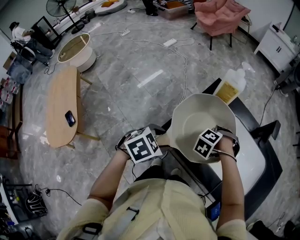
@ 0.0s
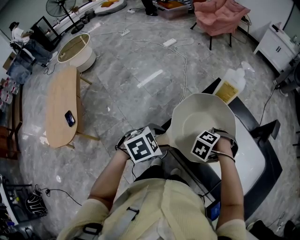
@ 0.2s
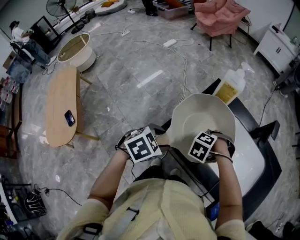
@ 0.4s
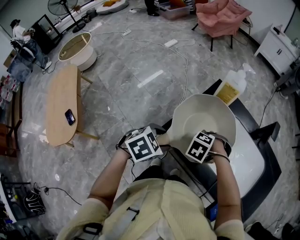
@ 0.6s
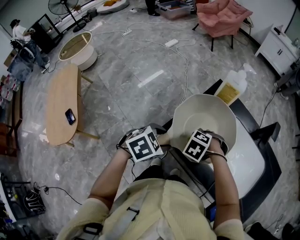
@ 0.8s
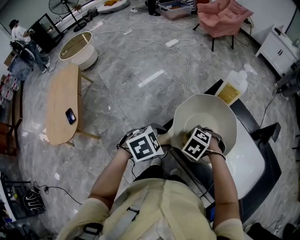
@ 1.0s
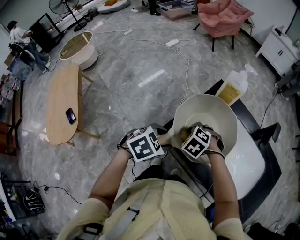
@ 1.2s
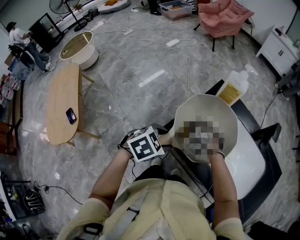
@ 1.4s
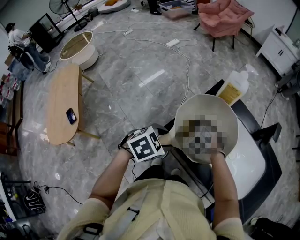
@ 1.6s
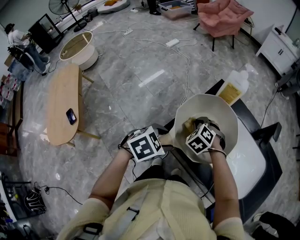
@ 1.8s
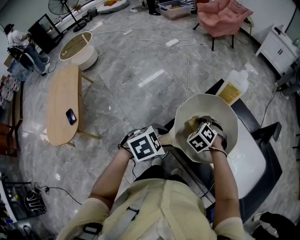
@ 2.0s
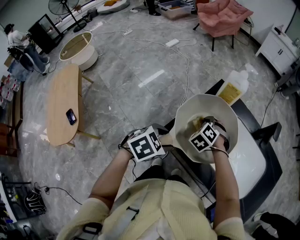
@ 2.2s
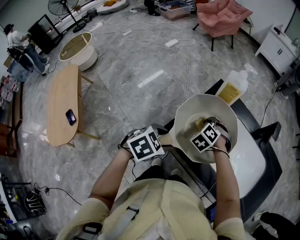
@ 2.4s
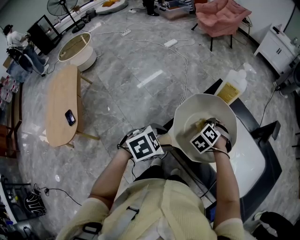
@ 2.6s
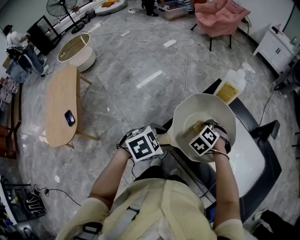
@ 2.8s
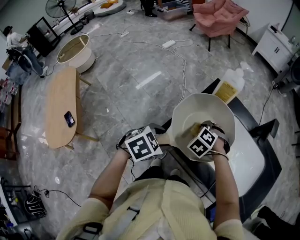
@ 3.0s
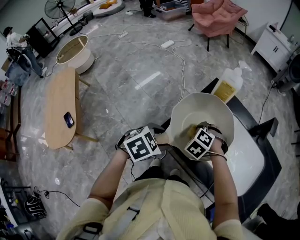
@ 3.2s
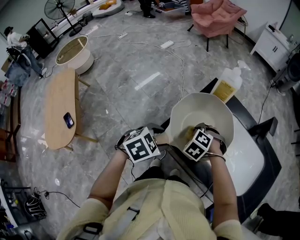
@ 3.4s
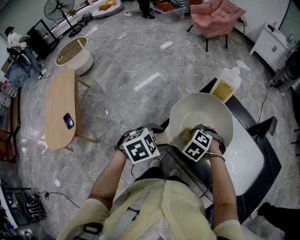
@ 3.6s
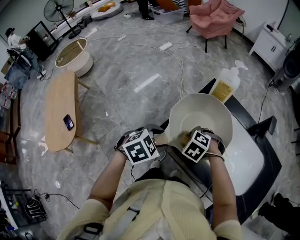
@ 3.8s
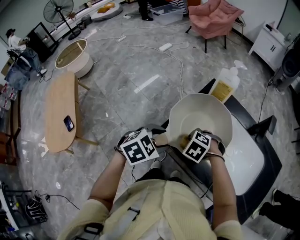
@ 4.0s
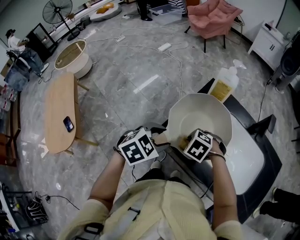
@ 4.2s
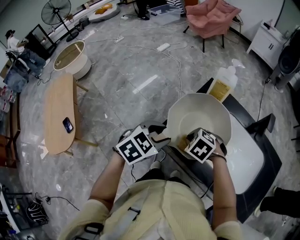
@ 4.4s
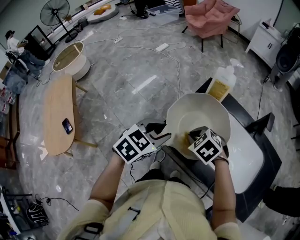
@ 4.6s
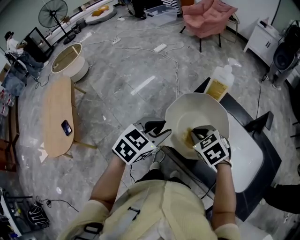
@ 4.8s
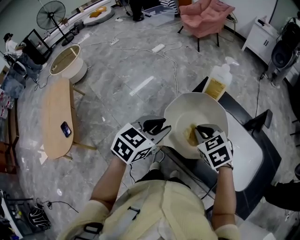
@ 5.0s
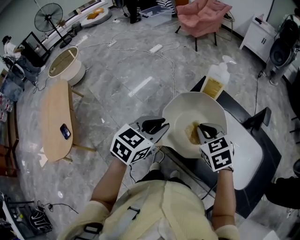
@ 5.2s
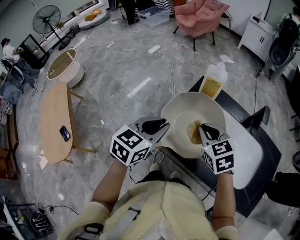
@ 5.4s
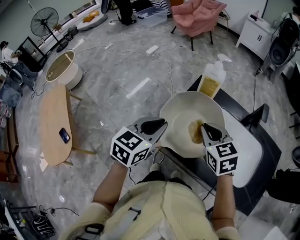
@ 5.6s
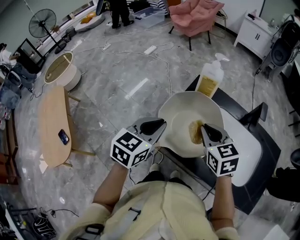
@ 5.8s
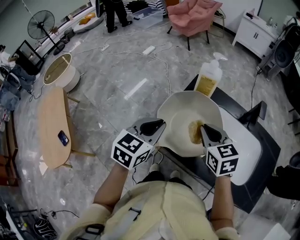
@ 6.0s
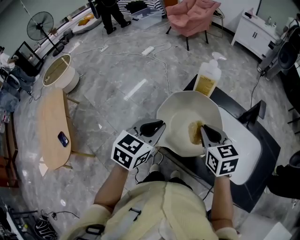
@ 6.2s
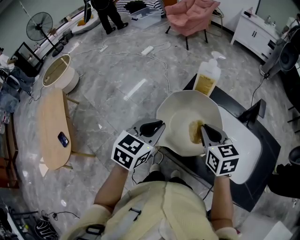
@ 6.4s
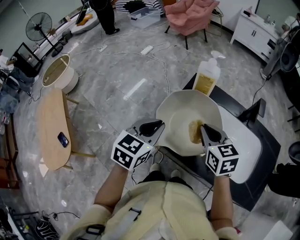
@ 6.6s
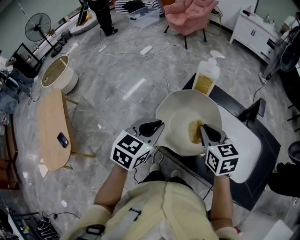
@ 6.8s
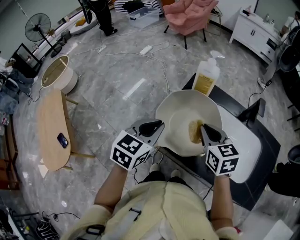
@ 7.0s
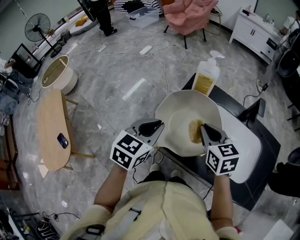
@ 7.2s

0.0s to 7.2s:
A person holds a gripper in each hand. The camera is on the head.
0.0s to 1.4s: The right gripper ends up about 15 cm from where it was, and swivels roughly 30 degrees.
1.4s to 2.8s: The right gripper moves to the right and forward, roughly 10 cm.
2.8s to 4.4s: The left gripper changes place by approximately 5 cm. Meanwhile the right gripper moves about 10 cm, and turns by some 30 degrees.
4.4s to 5.8s: The right gripper shifts about 15 cm upward and to the right, and tips its fingers upward by roughly 40 degrees. Meanwhile the left gripper shifts approximately 5 cm upward, turns by about 30 degrees, and closes.
5.8s to 7.2s: There are only small adjustments of the grippers.

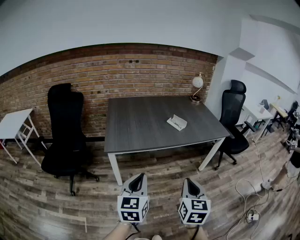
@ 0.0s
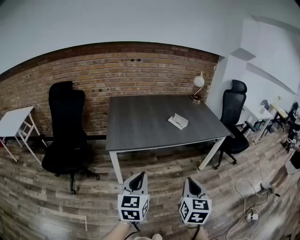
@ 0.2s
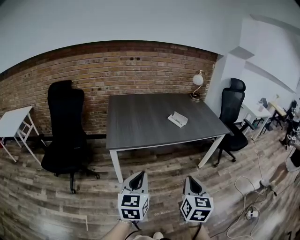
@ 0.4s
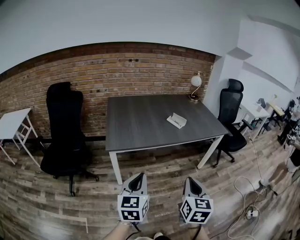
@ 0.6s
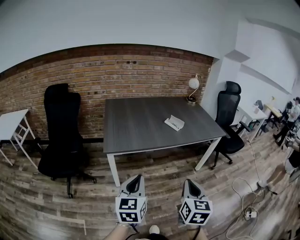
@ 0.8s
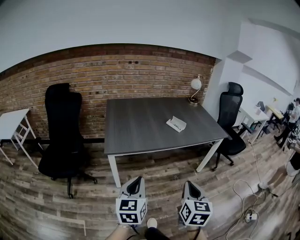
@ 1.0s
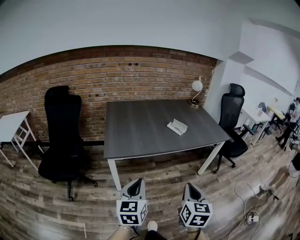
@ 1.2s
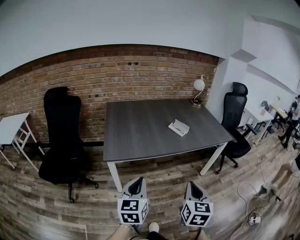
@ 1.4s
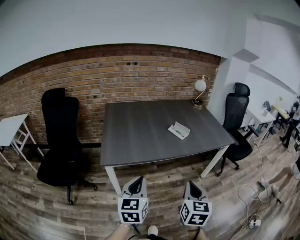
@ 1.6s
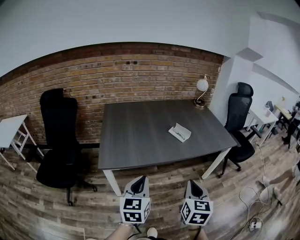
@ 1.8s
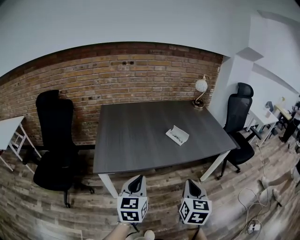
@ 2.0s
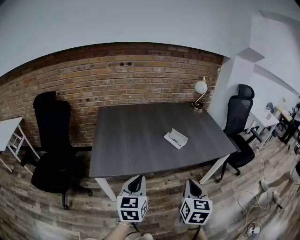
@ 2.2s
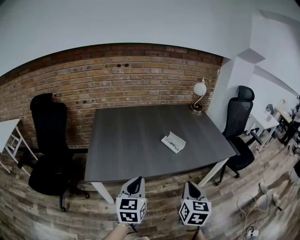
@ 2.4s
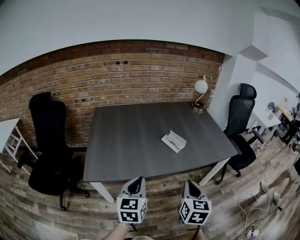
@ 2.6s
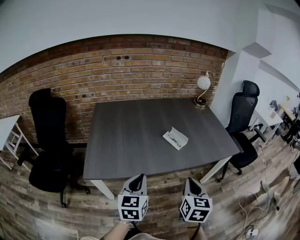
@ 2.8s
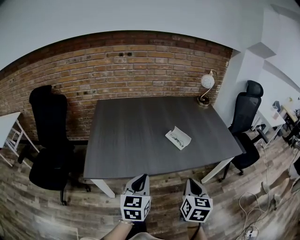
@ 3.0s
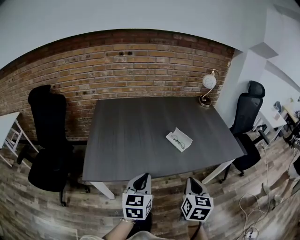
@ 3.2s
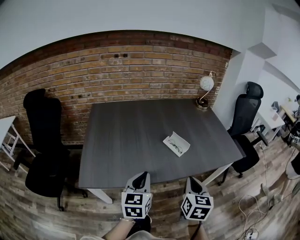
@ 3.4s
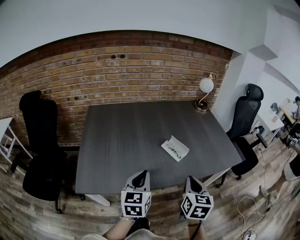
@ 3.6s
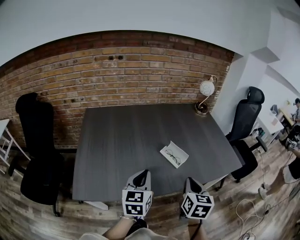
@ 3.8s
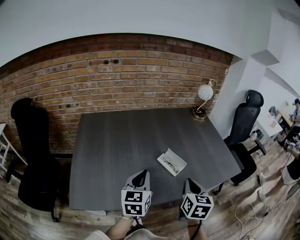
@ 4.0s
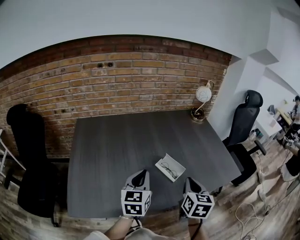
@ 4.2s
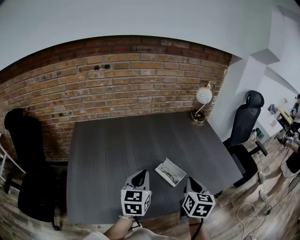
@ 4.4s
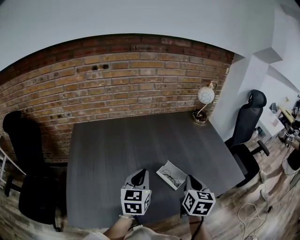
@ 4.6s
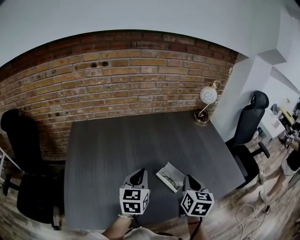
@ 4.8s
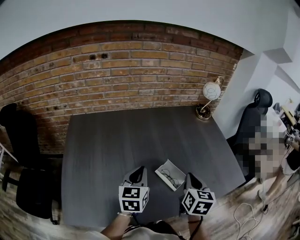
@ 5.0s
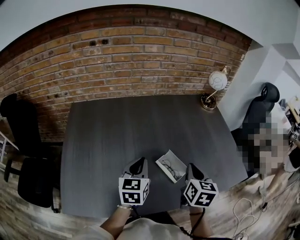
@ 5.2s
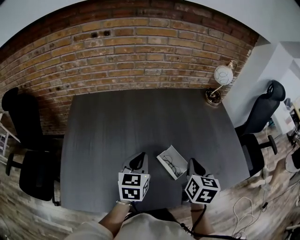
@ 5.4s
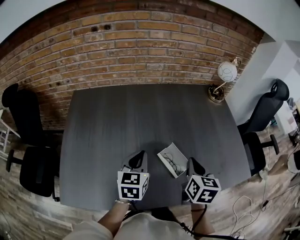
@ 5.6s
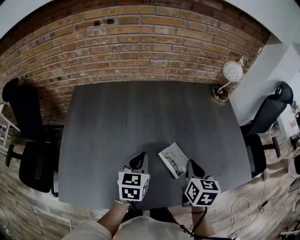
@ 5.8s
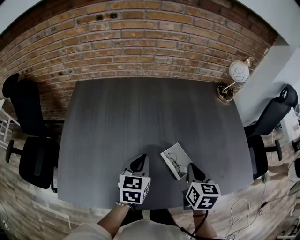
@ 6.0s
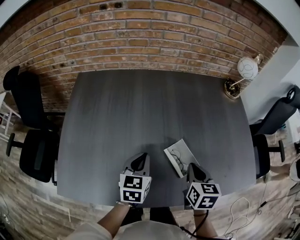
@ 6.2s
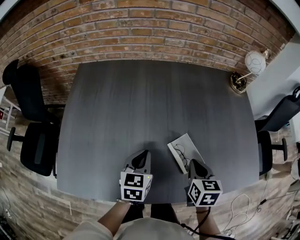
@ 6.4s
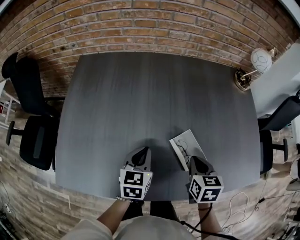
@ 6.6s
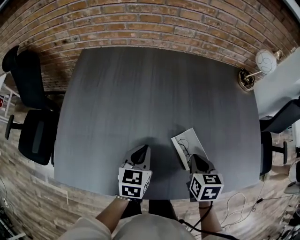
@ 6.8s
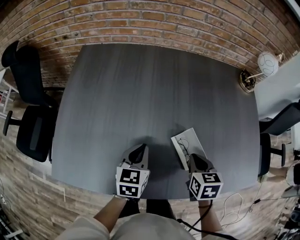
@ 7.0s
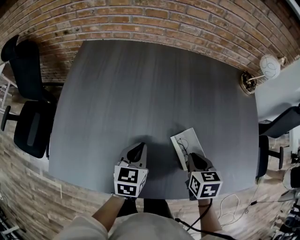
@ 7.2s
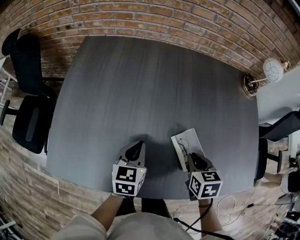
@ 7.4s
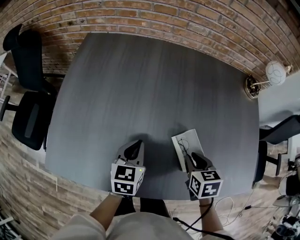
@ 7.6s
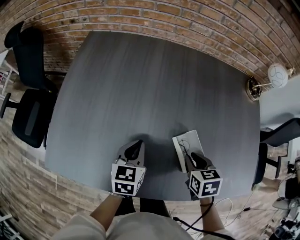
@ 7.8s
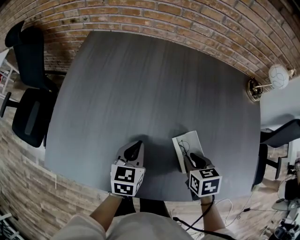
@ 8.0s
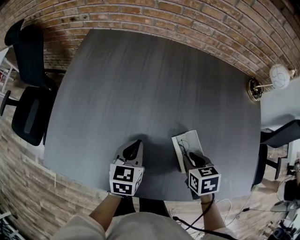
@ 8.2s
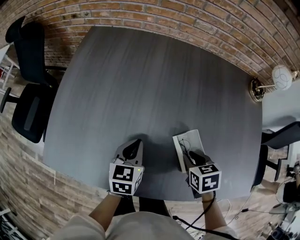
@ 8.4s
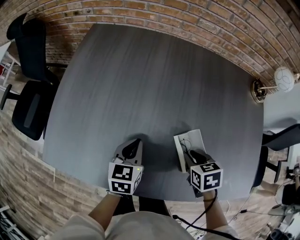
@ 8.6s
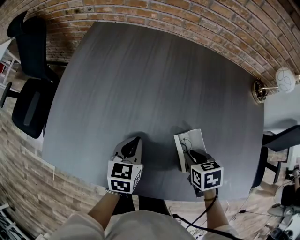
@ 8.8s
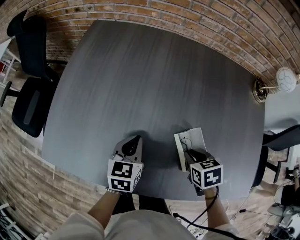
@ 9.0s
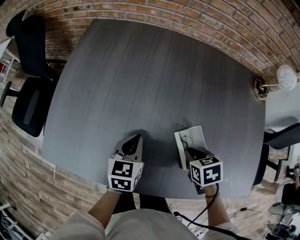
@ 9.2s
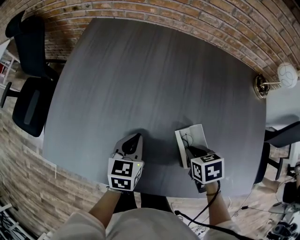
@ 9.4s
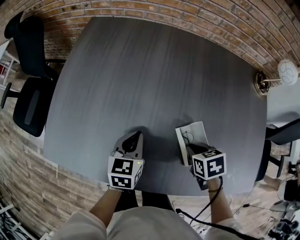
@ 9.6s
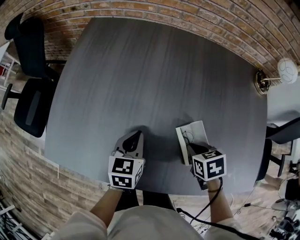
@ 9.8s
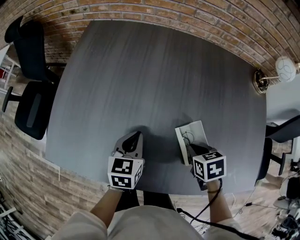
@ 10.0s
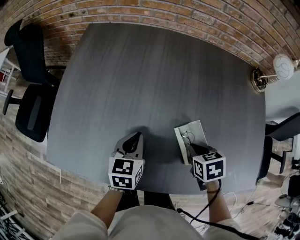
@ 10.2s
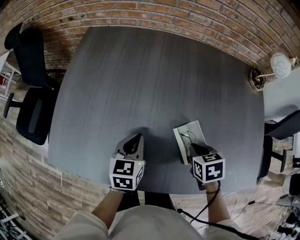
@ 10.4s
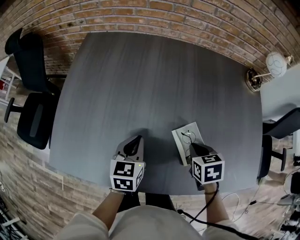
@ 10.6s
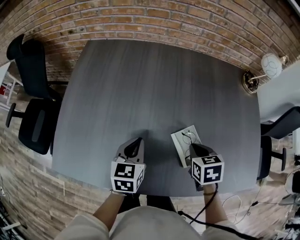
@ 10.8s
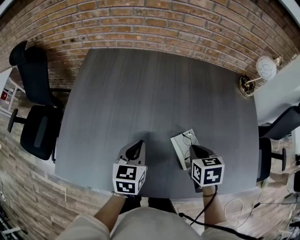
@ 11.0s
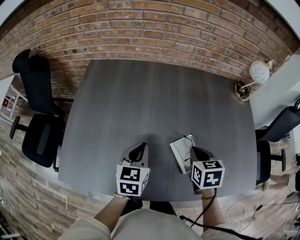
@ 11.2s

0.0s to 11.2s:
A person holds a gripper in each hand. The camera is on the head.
0.0s to 1.6s: Both grippers travel together forward, approximately 10 cm.
1.6s to 3.2s: The two grippers go about 20 cm forward.
3.2s to 4.8s: The two grippers go roughly 25 cm forward.
4.8s to 6.4s: Both grippers travel together downward, approximately 10 cm. The right gripper turns by some 30 degrees.
6.4s to 8.0s: The right gripper moves downward, roughly 5 cm, and turns by roughly 30 degrees.
8.0s to 9.6s: The grippers stay close to where they were, moving slightly.
9.6s to 11.2s: The grippers both shift upward by approximately 10 cm. The right gripper turns by approximately 30 degrees.

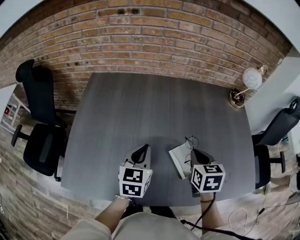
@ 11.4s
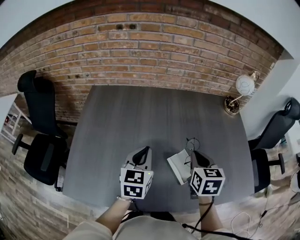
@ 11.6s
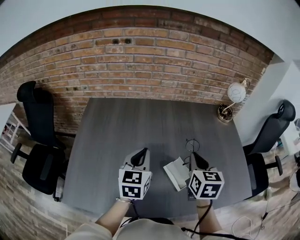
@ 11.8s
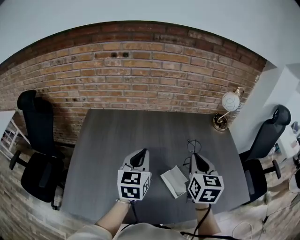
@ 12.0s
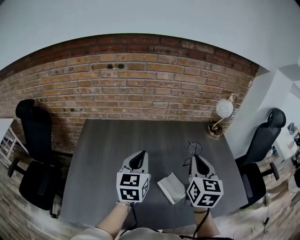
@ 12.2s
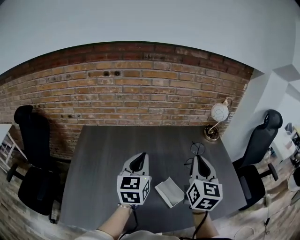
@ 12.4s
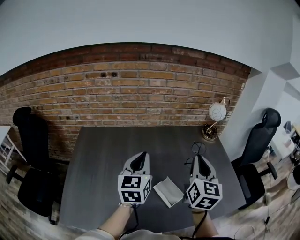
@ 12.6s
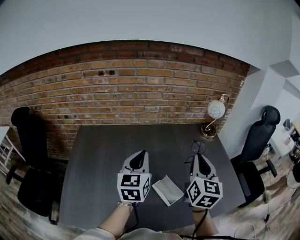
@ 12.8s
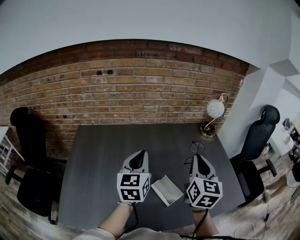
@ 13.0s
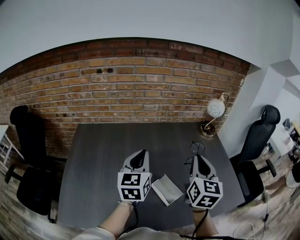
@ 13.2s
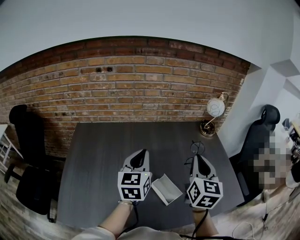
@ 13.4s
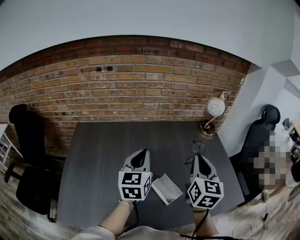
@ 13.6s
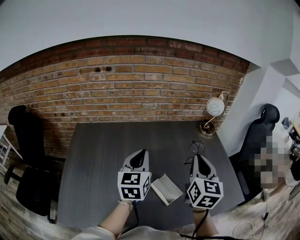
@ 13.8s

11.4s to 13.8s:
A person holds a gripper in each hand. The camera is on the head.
11.4s to 12.6s: The right gripper is displaced upward by some 20 cm, and points its fingers roughly 40 degrees further upward. The left gripper is displaced upward and forward by approximately 15 cm, and swivels approximately 20 degrees.
12.6s to 13.8s: The grippers move only a little.

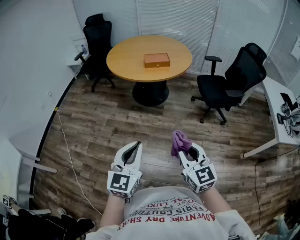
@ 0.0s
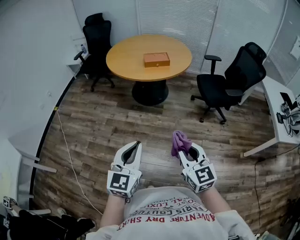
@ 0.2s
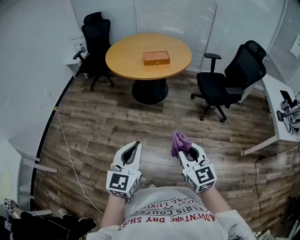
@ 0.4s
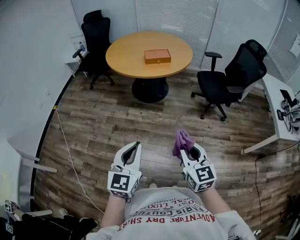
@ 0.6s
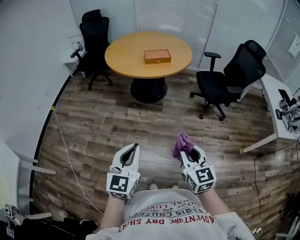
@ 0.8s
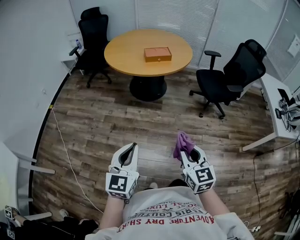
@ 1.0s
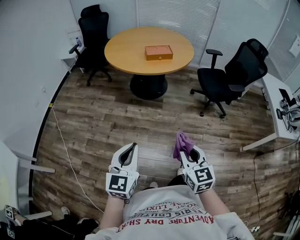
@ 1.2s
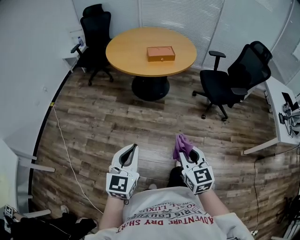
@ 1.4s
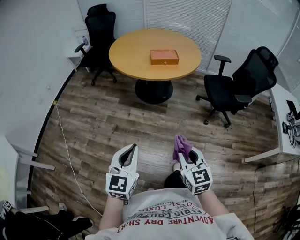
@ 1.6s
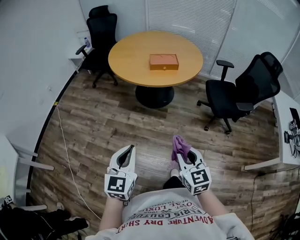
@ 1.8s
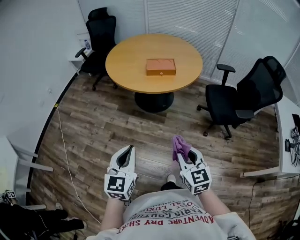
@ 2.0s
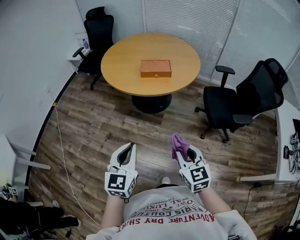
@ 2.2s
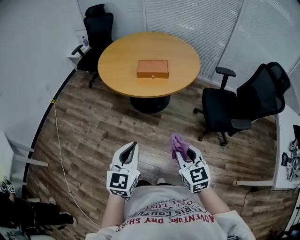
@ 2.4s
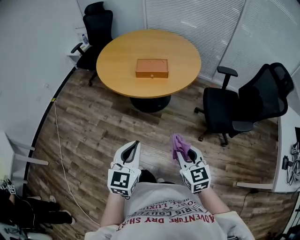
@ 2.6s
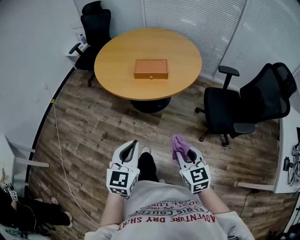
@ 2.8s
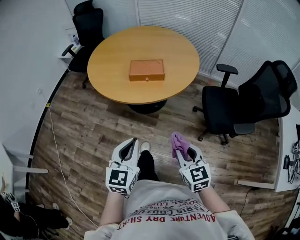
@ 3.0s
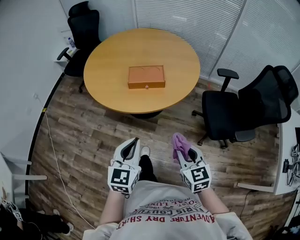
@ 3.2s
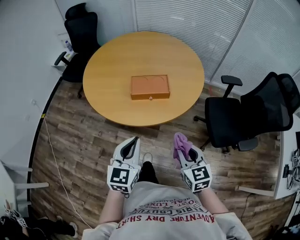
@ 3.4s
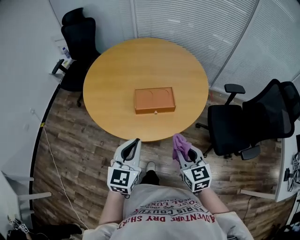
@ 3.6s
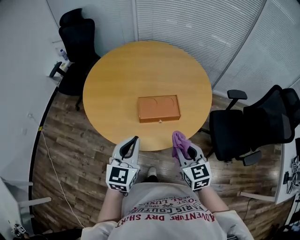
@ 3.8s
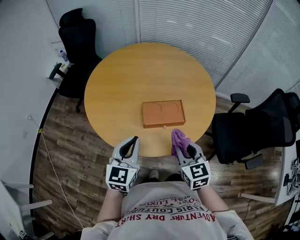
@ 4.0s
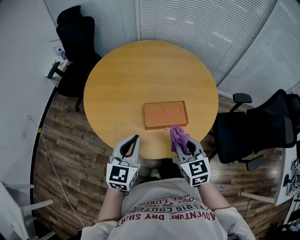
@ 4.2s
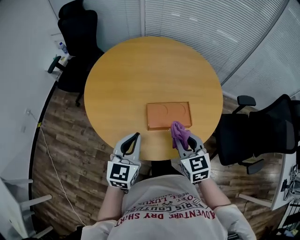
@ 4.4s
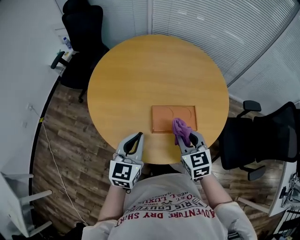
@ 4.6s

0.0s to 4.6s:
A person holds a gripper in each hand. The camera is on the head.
0.0s to 1.6s: The left gripper heads forward, to the left and downward, covering about 10 cm. The right gripper travels forward and downward by some 10 cm.
1.6s to 3.0s: The two grippers go approximately 40 cm forward and to the right.
3.0s to 4.6s: The two grippers travel together, forward, approximately 50 cm.
